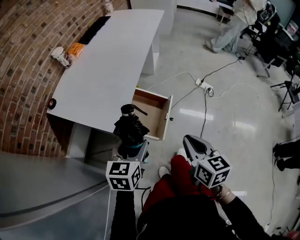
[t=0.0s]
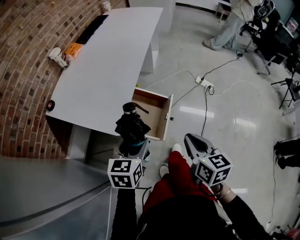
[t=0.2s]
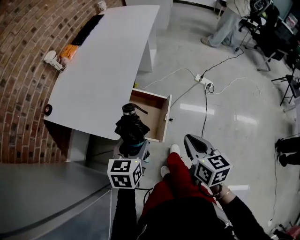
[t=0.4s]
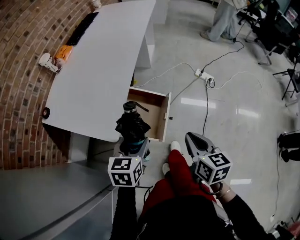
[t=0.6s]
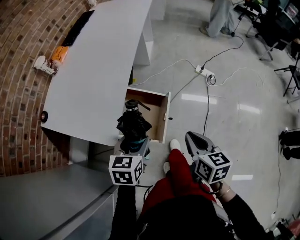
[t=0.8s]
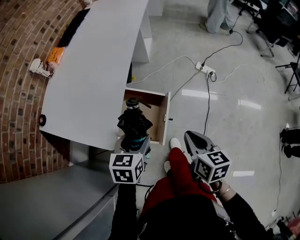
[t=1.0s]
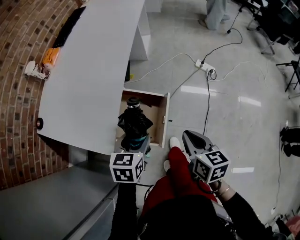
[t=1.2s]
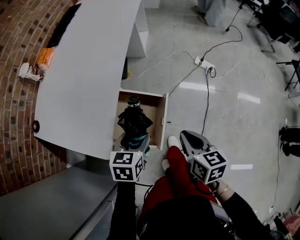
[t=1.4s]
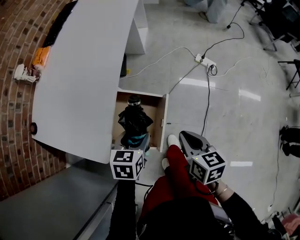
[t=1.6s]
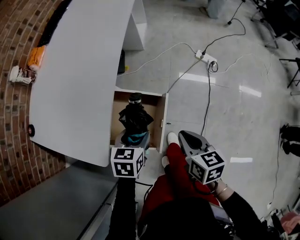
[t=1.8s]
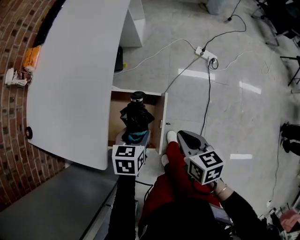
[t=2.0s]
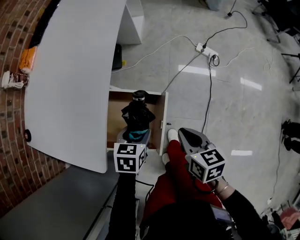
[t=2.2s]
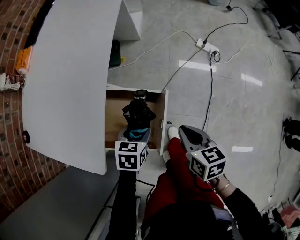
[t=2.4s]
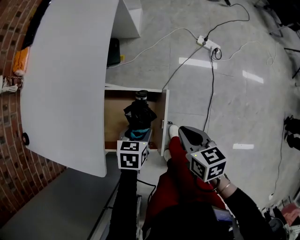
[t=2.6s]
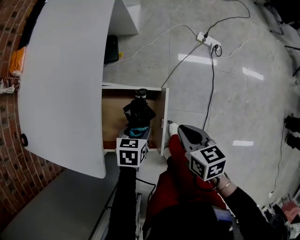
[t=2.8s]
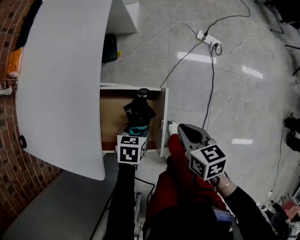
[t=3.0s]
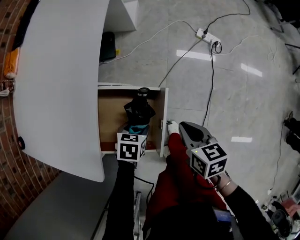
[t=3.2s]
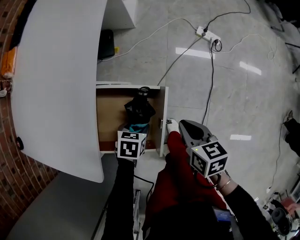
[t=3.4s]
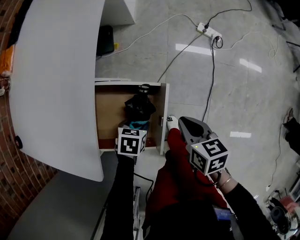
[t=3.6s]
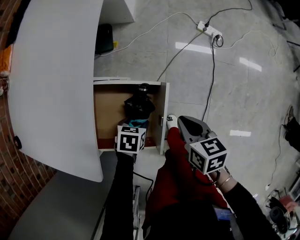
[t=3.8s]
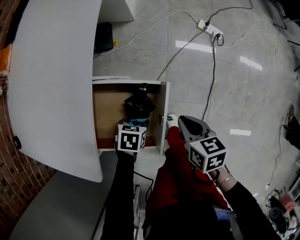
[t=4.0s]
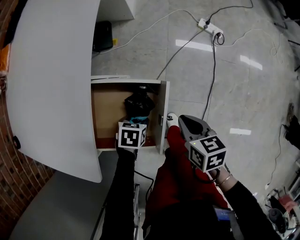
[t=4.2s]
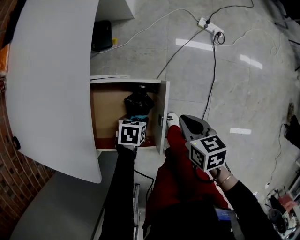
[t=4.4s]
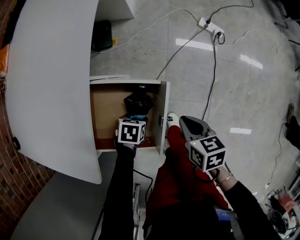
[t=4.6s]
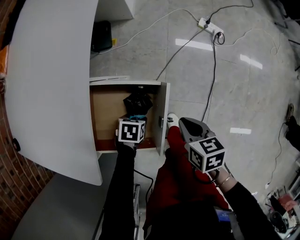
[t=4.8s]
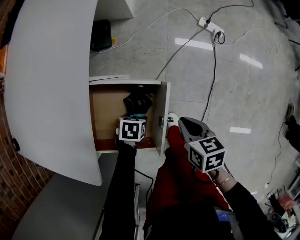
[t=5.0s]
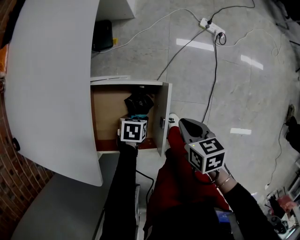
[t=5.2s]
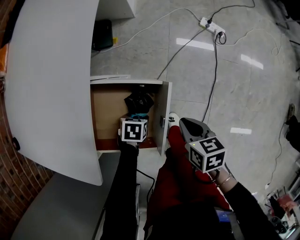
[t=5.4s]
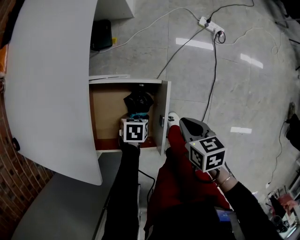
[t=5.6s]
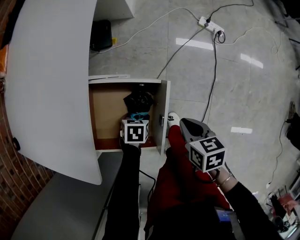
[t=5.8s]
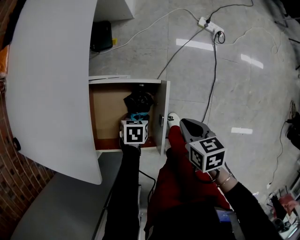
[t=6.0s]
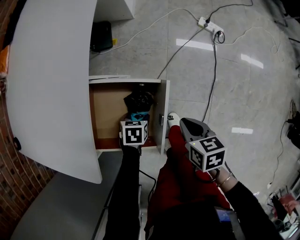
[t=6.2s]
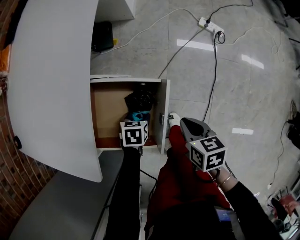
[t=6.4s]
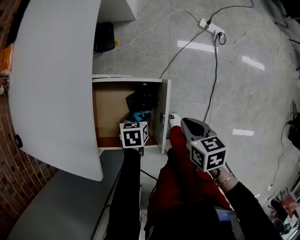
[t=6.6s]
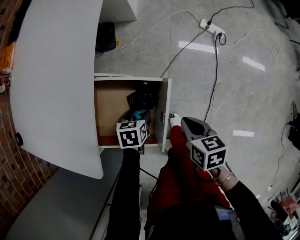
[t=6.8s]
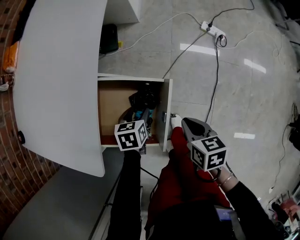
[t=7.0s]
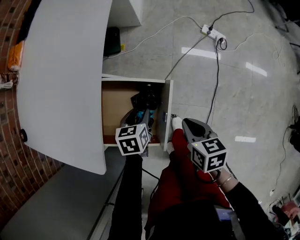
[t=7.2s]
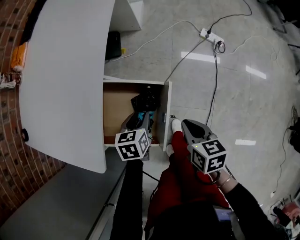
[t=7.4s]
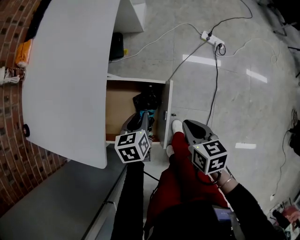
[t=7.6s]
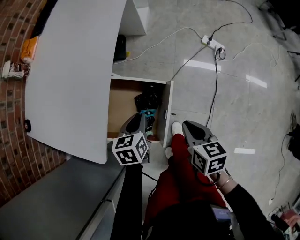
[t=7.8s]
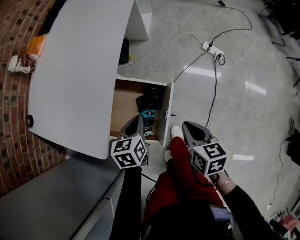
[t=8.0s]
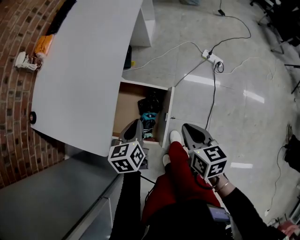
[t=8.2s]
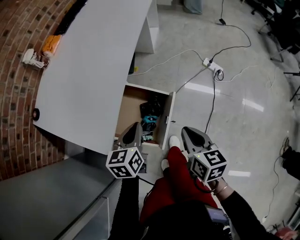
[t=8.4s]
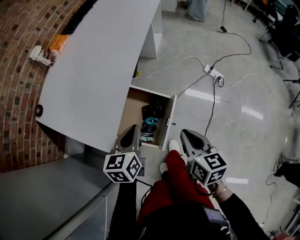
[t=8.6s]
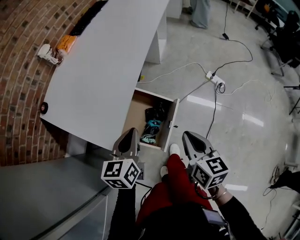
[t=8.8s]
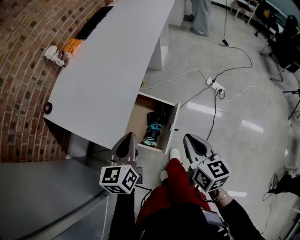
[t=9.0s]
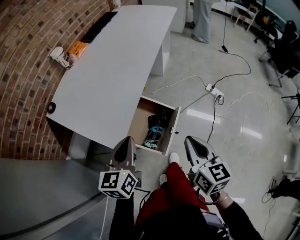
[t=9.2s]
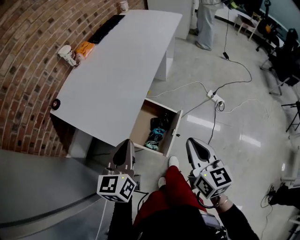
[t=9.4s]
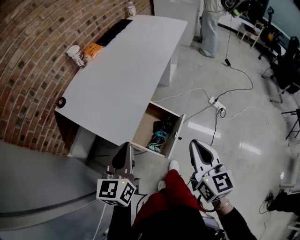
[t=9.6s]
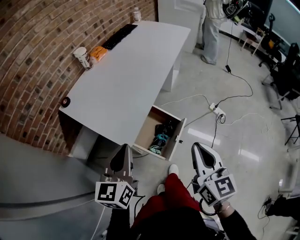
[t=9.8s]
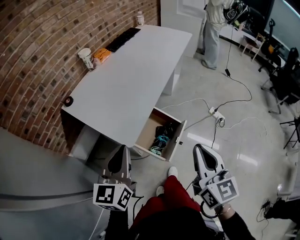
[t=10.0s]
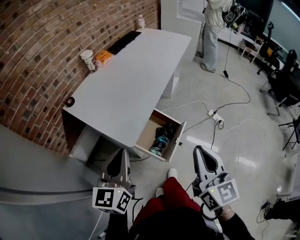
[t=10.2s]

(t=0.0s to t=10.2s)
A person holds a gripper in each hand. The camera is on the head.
t=0.0s - t=1.4s: The left gripper heads forward, downward and to the right, covering some 20 cm; the right gripper is displaced forward and downward by roughly 15 cm.
t=1.4s - t=3.0s: The right gripper shifts approximately 10 cm downward and forward. Meanwhile the left gripper is displaced downward by about 20 cm, and changes its angle by some 20 degrees.
t=3.0s - t=4.4s: The left gripper is displaced downward by about 10 cm, while the right gripper shifts by roughly 5 cm.
t=4.4s - t=5.8s: The grippers move only a little.
t=5.8s - t=7.2s: The left gripper shifts approximately 10 cm upward, and turns by approximately 30 degrees.
t=7.2s - t=8.8s: Both grippers move upward, some 20 cm. The right gripper changes its angle by roughly 30 degrees, while the left gripper tilts its fingers some 30 degrees upward, and closes up.
t=8.8s - t=10.2s: The right gripper goes roughly 20 cm upward and backward, and changes its angle by roughly 30 degrees. Meanwhile the left gripper heads upward, backward and to the left, covering some 25 cm, and swivels roughly 20 degrees.

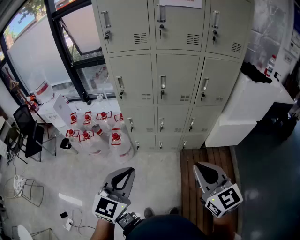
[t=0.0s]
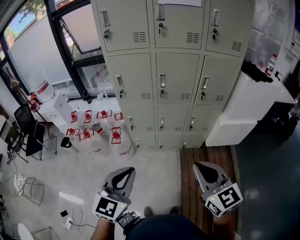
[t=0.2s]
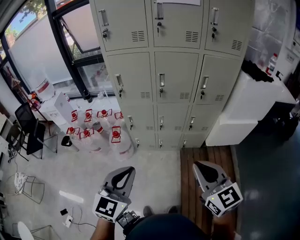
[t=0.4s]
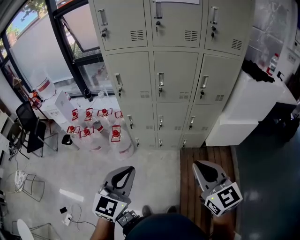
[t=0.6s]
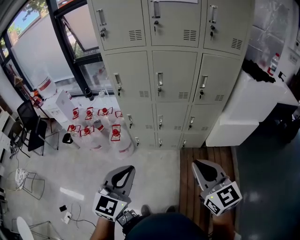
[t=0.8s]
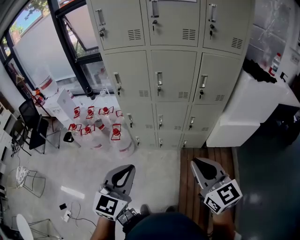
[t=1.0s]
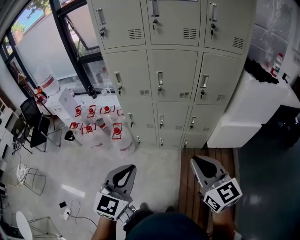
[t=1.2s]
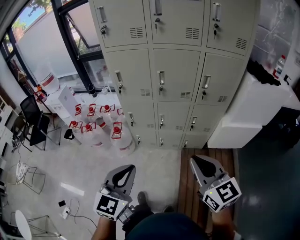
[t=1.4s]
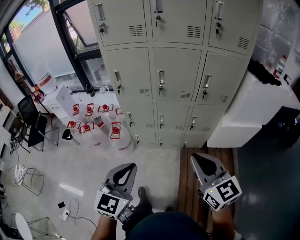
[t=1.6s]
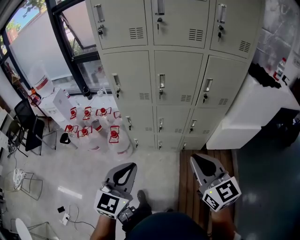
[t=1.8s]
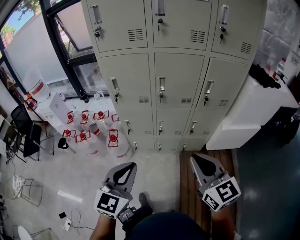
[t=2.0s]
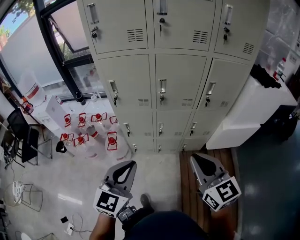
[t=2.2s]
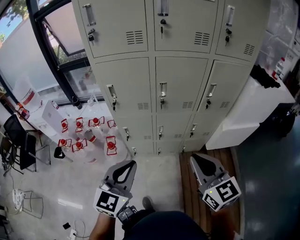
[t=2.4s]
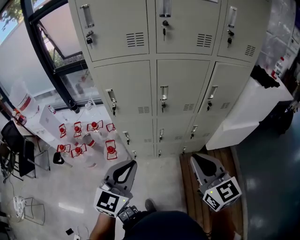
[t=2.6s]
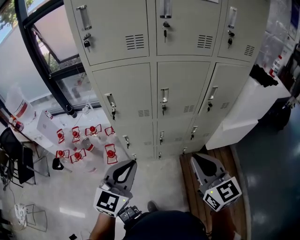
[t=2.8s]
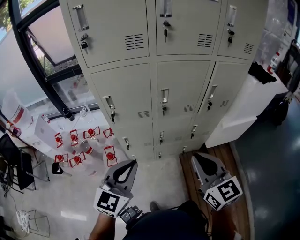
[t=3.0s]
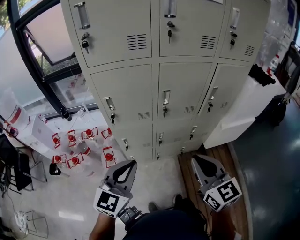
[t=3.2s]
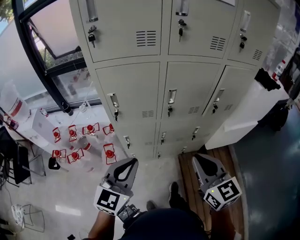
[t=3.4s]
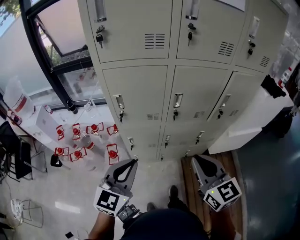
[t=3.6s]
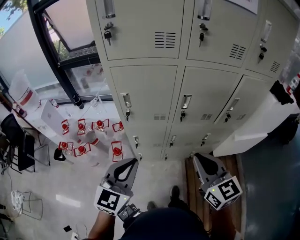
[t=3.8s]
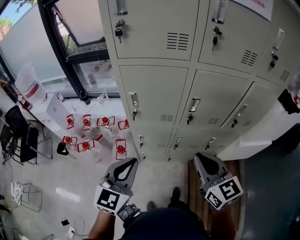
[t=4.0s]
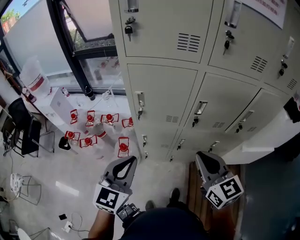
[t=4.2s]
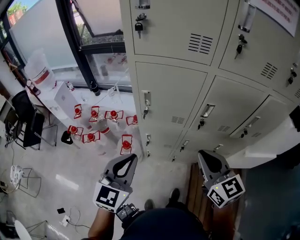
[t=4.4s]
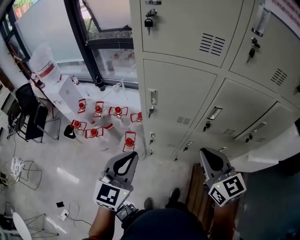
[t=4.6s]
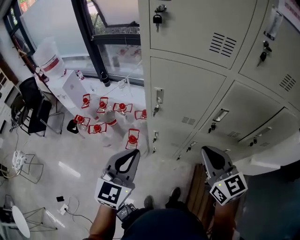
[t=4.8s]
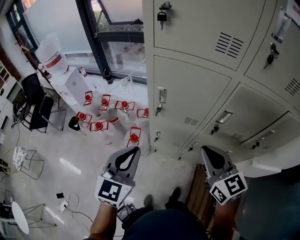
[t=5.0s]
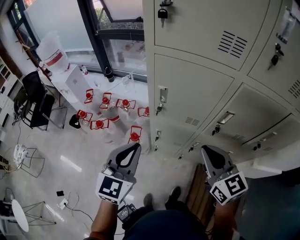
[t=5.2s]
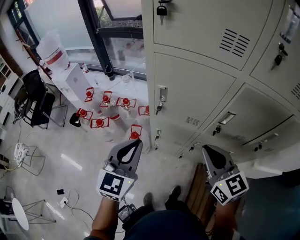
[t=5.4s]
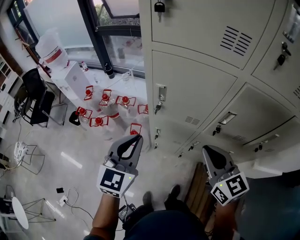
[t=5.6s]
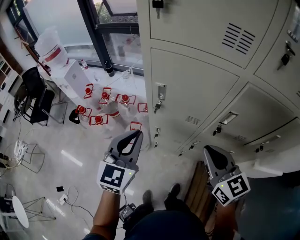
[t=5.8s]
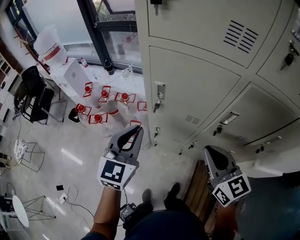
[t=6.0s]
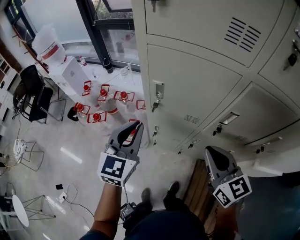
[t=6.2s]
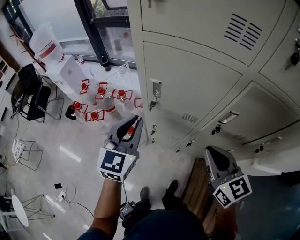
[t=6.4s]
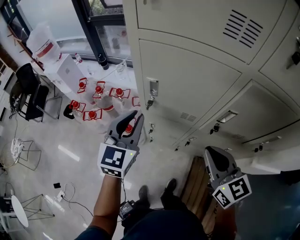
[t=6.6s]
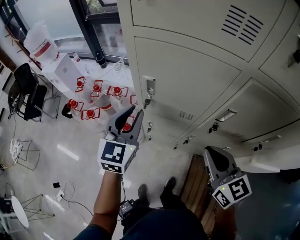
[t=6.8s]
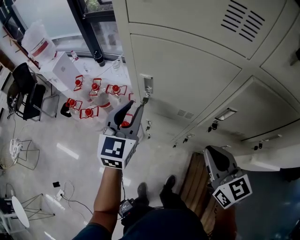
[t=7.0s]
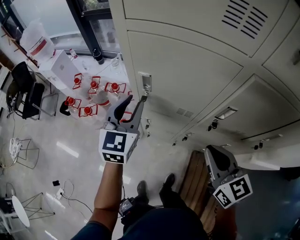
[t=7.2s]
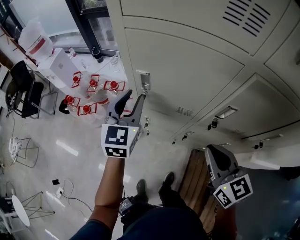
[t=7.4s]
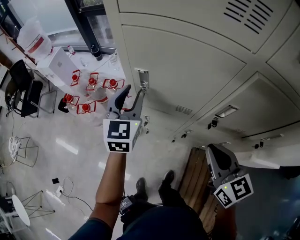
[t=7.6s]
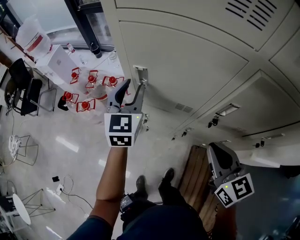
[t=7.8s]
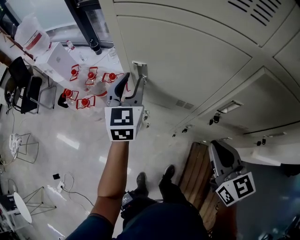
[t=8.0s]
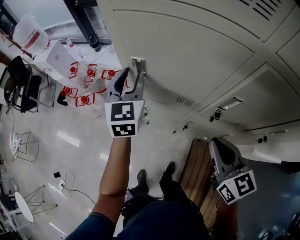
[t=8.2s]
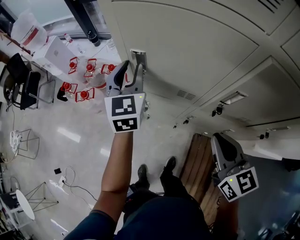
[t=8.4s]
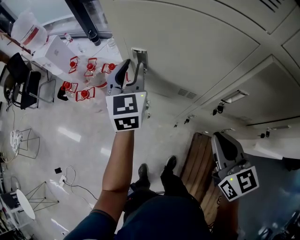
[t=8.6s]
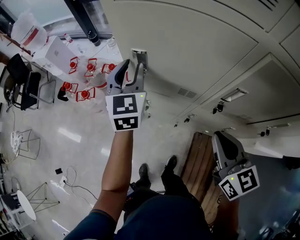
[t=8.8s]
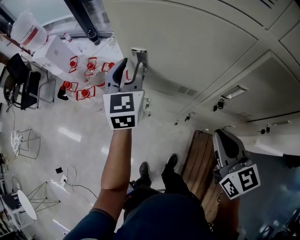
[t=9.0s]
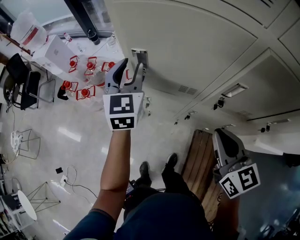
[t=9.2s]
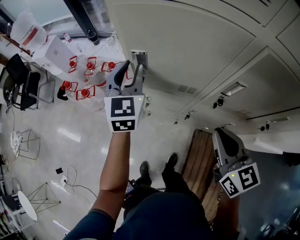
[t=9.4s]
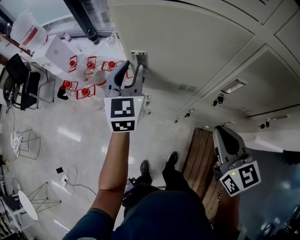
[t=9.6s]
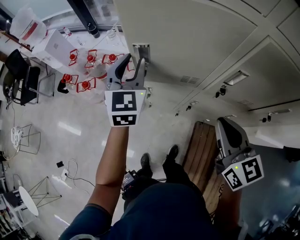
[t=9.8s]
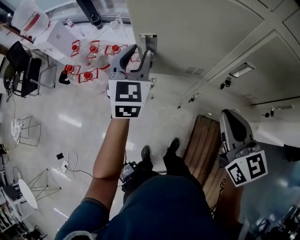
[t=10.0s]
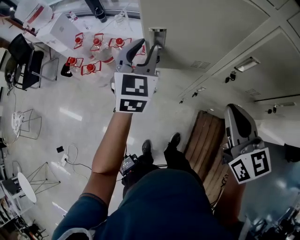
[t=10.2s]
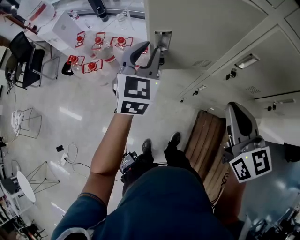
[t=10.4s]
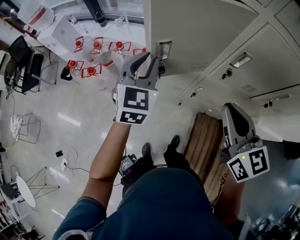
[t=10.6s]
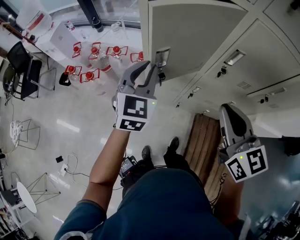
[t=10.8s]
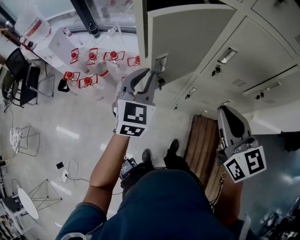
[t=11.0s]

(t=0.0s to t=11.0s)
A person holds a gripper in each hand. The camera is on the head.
t=0.0s - t=1.6s: The left gripper is displaced to the right by roughly 5 cm. The right gripper moves forward and to the right, approximately 10 cm.
t=1.6s - t=3.2s: The grippers both shift forward and to the left by some 25 cm.
t=3.2s - t=4.8s: The left gripper goes roughly 15 cm to the left and forward, and changes its angle by roughly 30 degrees. Meanwhile the right gripper moves forward and to the left, some 20 cm, and rotates about 20 degrees.
t=4.8s - t=6.2s: The right gripper moves some 5 cm. The left gripper goes roughly 10 cm forward.
t=6.2s - t=7.8s: The left gripper goes about 15 cm forward, and opens its fingers. The right gripper goes about 5 cm to the right.
t=7.8s - t=9.4s: The grippers move only a little.
t=9.4s - t=11.0s: The right gripper is displaced backward, upward and to the left by roughly 15 cm; the left gripper goes some 20 cm backward.

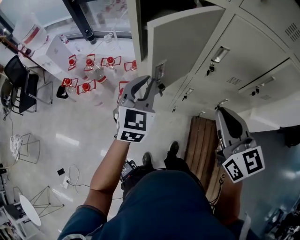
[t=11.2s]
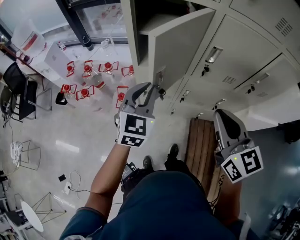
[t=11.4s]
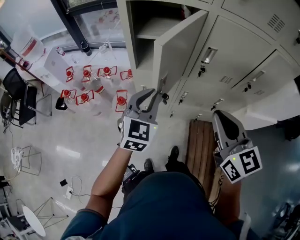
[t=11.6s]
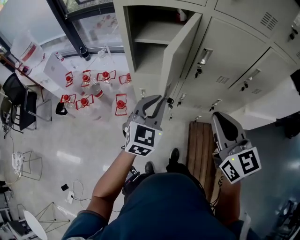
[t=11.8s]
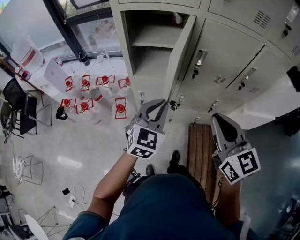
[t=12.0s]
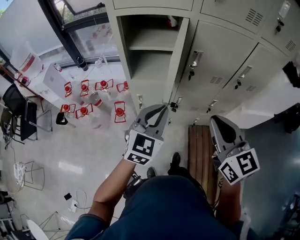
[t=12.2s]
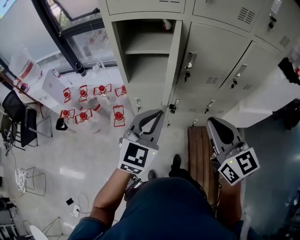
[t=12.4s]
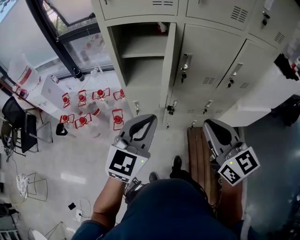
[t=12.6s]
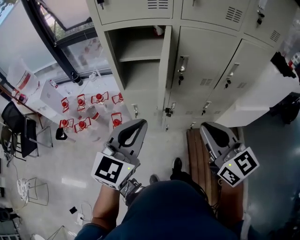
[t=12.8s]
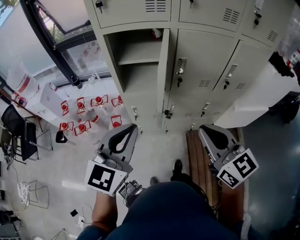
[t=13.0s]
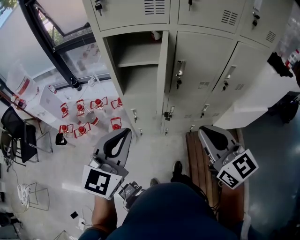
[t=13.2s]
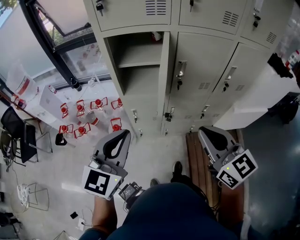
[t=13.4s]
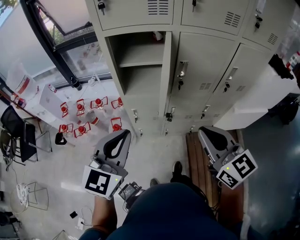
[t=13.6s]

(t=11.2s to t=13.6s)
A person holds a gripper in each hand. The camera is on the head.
t=11.2s - t=12.4s: The right gripper moves backward, approximately 10 cm, while the left gripper goes about 15 cm backward, to the right and upward, and turns by roughly 20 degrees.
t=12.4s - t=13.6s: The left gripper is displaced to the left and upward by roughly 10 cm.
